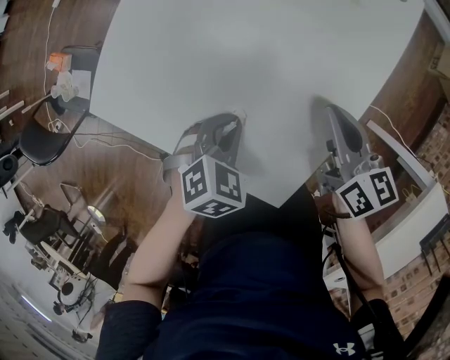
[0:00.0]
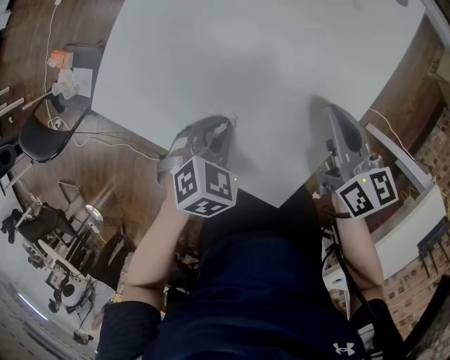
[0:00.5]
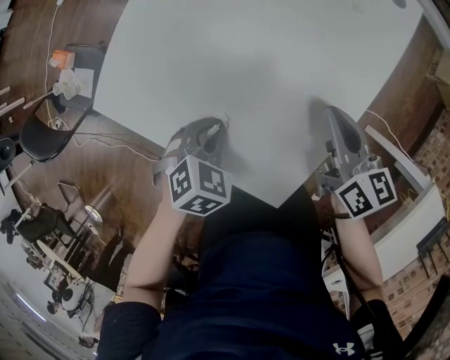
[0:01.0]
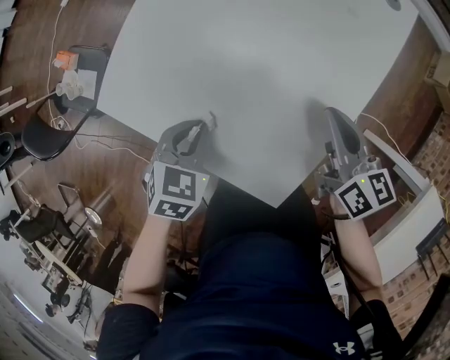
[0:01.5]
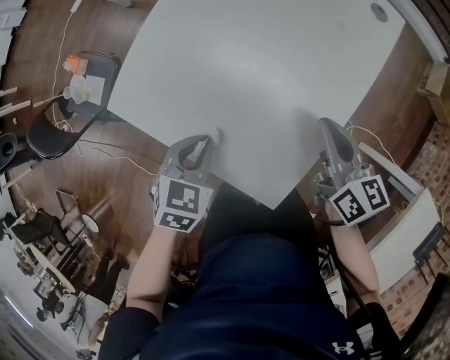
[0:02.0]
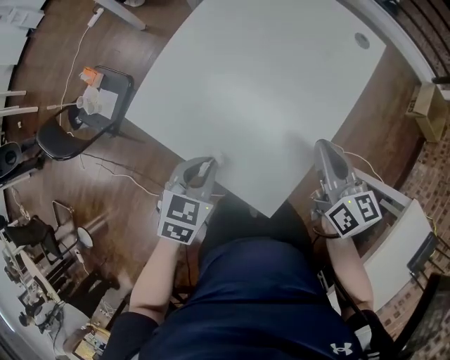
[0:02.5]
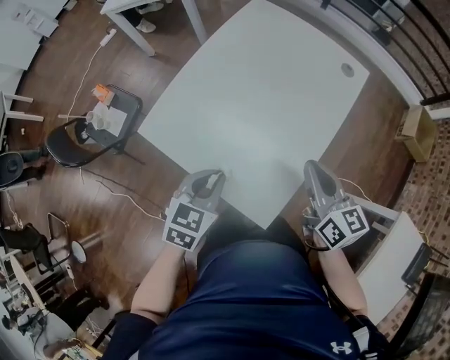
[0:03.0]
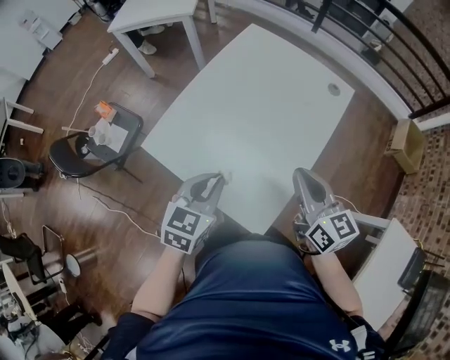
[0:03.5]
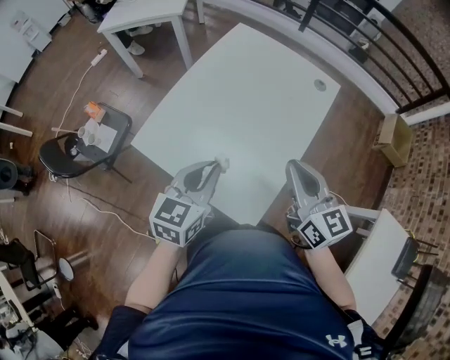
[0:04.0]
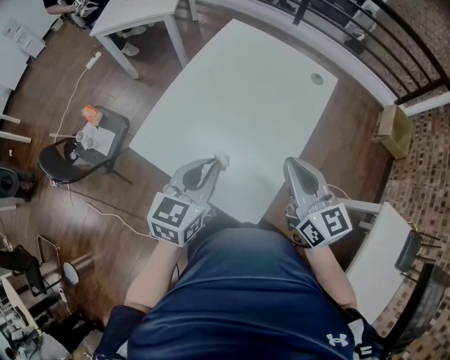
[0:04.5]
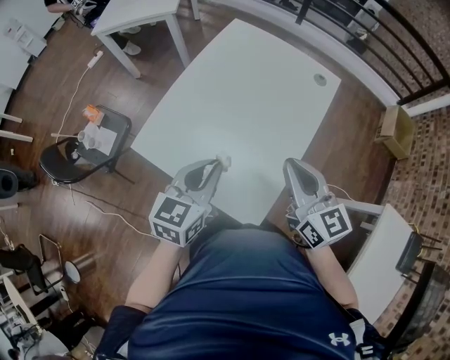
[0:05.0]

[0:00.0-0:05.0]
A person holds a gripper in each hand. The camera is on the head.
0:00.0 to 0:02.5: The right gripper is displaced upward by approximately 10 cm, while the left gripper goes approximately 10 cm upward and to the left, and turns by some 30 degrees.
0:02.5 to 0:05.0: The two grippers go roughly 15 cm upward. The right gripper swivels approximately 20 degrees. Meanwhile the left gripper turns by approximately 30 degrees.

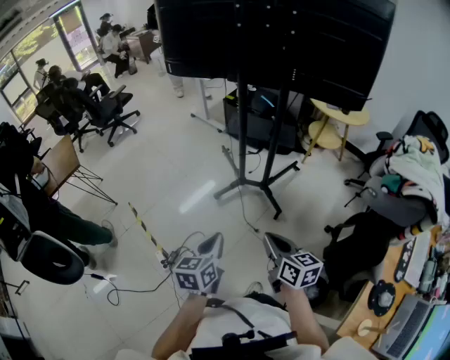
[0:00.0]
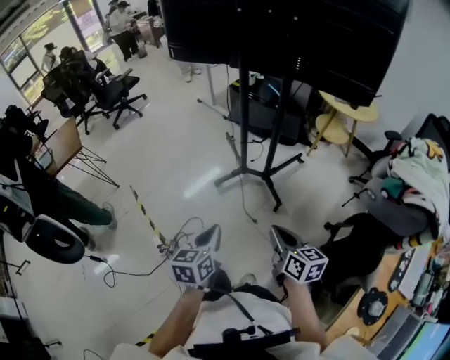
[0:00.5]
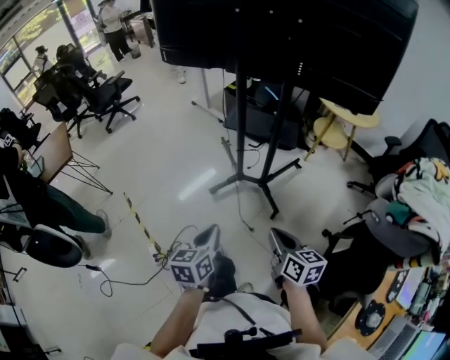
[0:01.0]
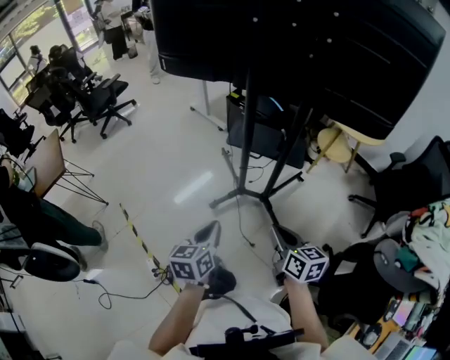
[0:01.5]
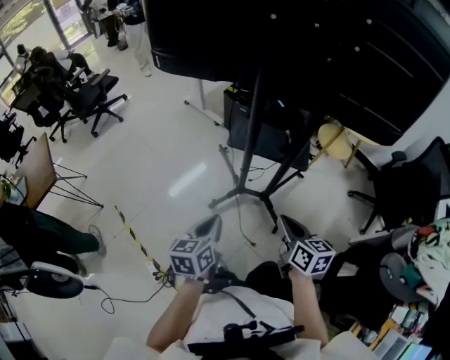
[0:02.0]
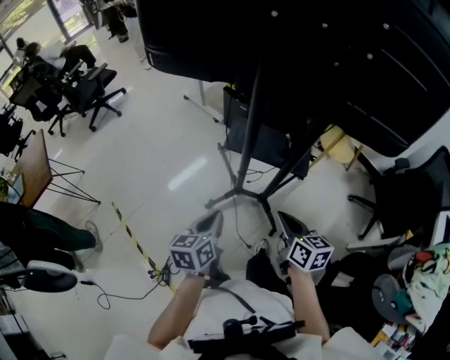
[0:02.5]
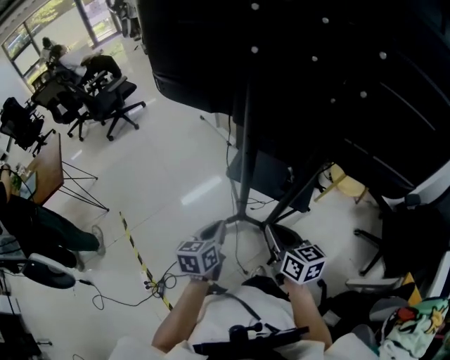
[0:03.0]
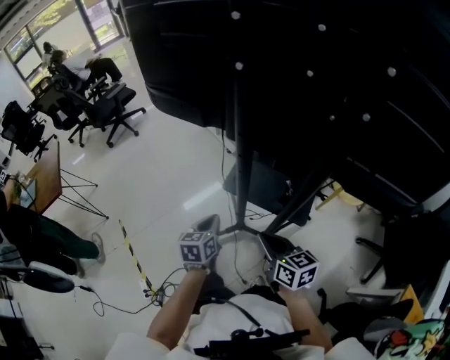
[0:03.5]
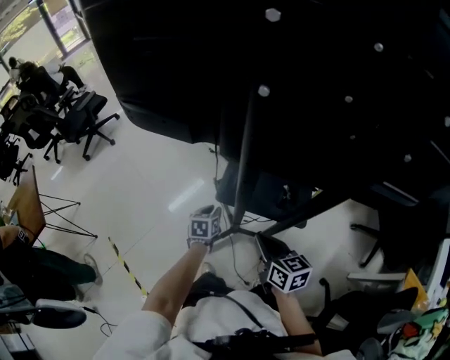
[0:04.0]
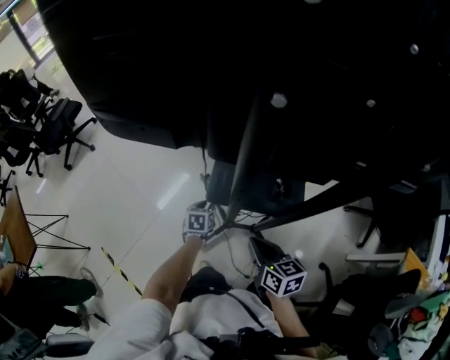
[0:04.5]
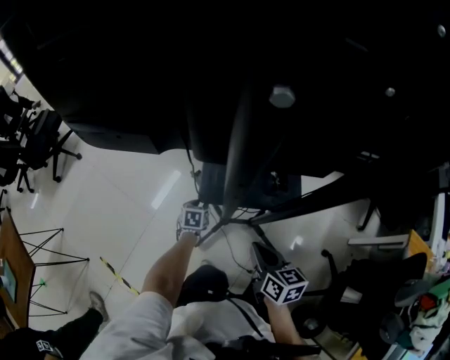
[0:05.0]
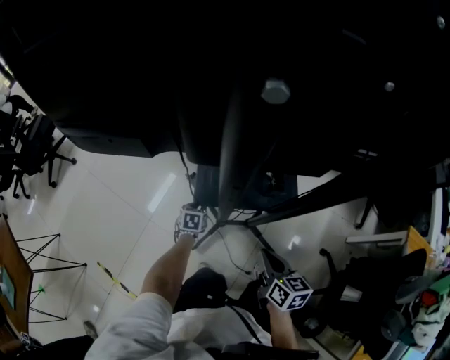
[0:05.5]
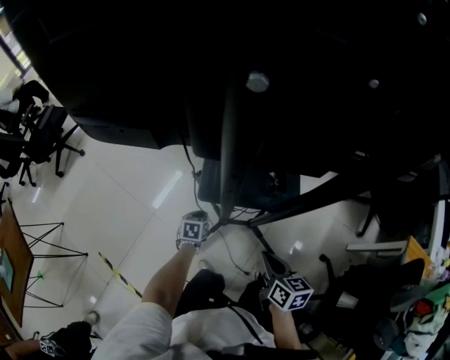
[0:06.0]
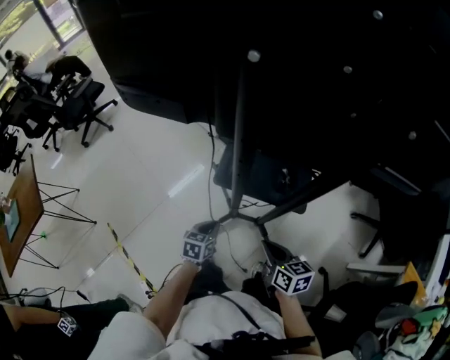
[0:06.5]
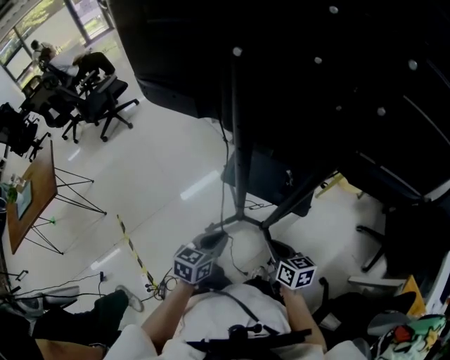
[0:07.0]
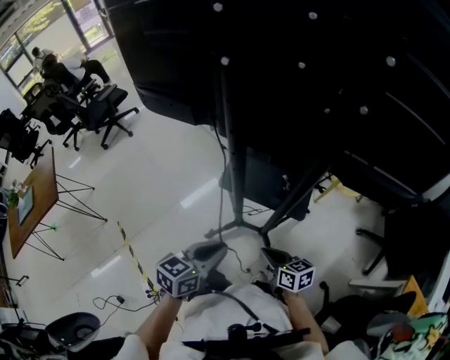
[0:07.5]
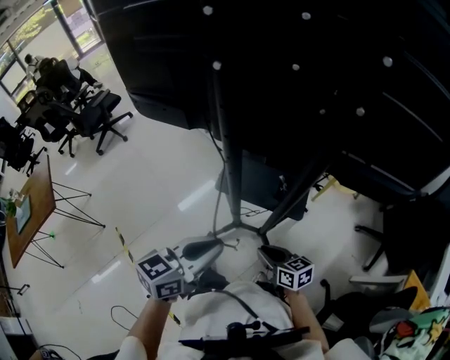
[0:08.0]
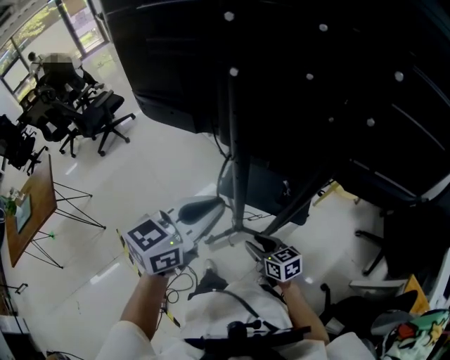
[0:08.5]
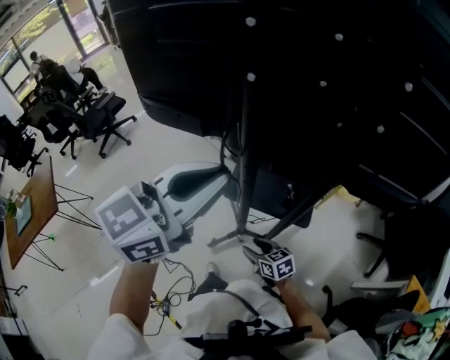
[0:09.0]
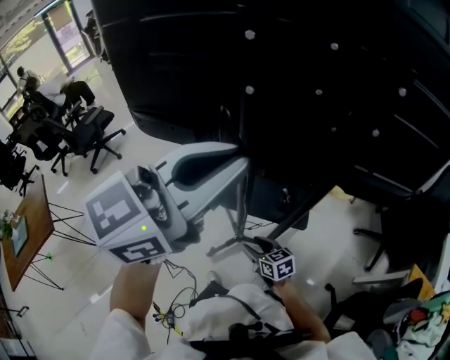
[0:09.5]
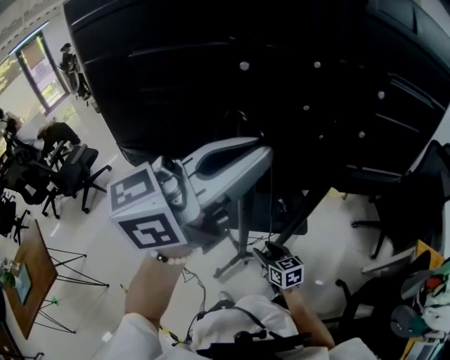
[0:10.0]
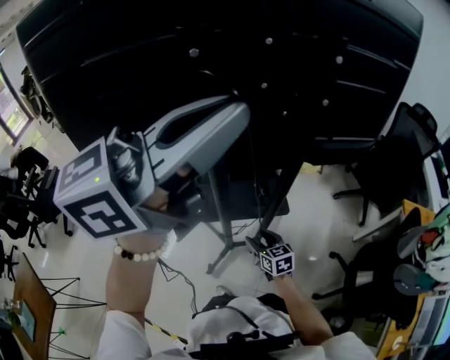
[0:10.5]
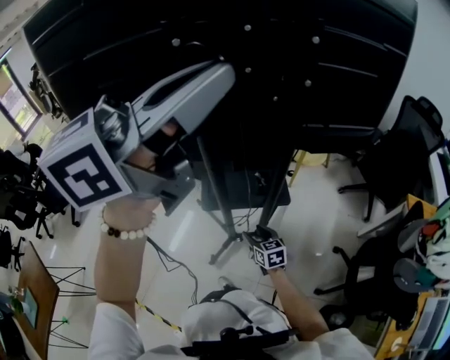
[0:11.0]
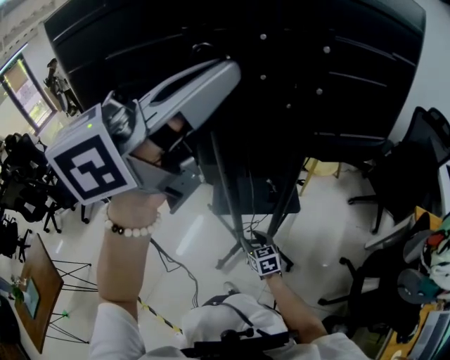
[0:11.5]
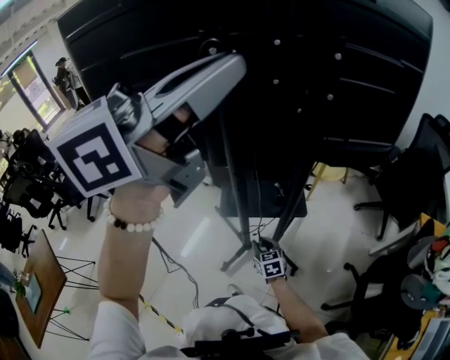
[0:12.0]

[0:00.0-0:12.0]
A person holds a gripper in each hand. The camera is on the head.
0:00.0 to 0:02.0: Both grippers move forward, roughly 35 cm.
0:02.0 to 0:04.0: The left gripper heads forward and downward, covering about 40 cm, turns by roughly 20 degrees, and opens its fingers, while the right gripper is displaced forward by approximately 25 cm.
0:04.0 to 0:06.0: The right gripper travels downward by approximately 5 cm, and changes its angle by about 20 degrees. The left gripper travels downward by roughly 10 cm.
0:06.0 to 0:08.0: The right gripper goes some 5 cm backward, and turns by approximately 30 degrees. Meanwhile the left gripper is displaced upward and backward by about 50 cm, and tilts its fingers approximately 40 degrees upward.
0:08.0 to 0:10.0: The left gripper shifts some 35 cm upward, and angles its fingers upward, by about 30 degrees. Meanwhile the right gripper moves approximately 15 cm, turns by about 20 degrees, and opens.
0:10.0 to 0:12.0: The right gripper moves downward, about 10 cm, and closes, while the left gripper goes roughly 10 cm upward.

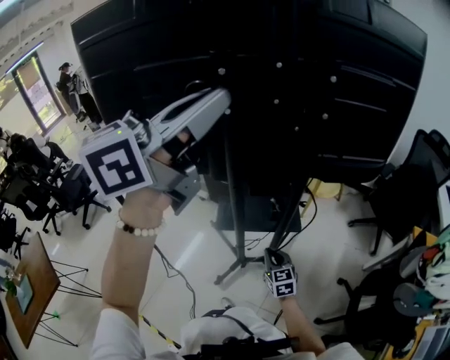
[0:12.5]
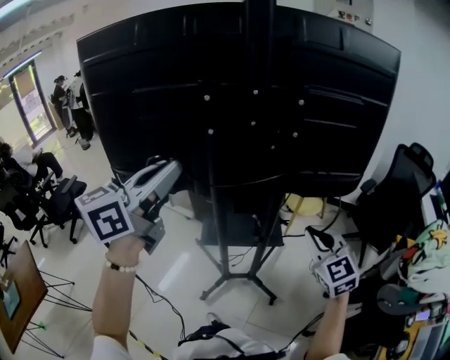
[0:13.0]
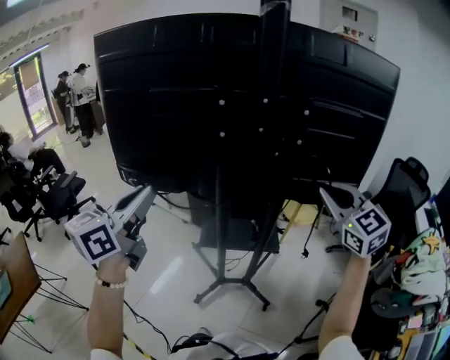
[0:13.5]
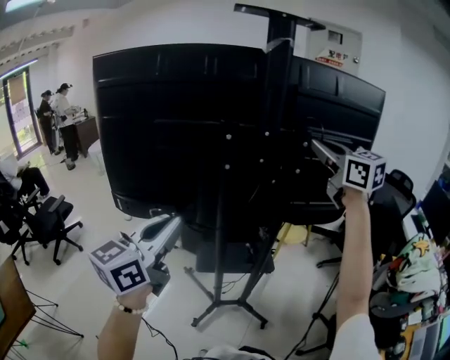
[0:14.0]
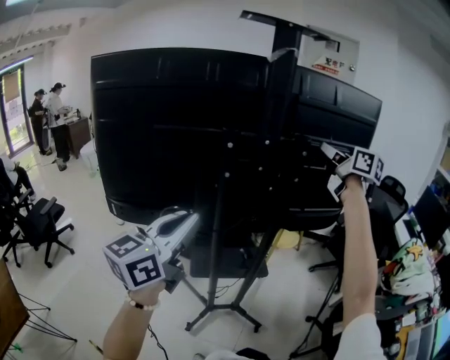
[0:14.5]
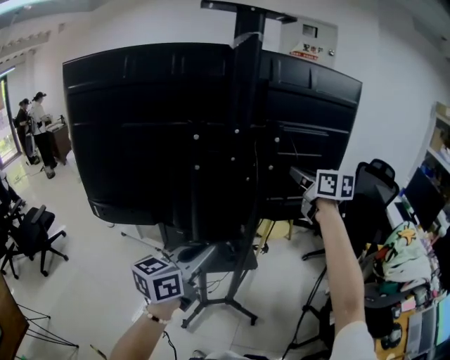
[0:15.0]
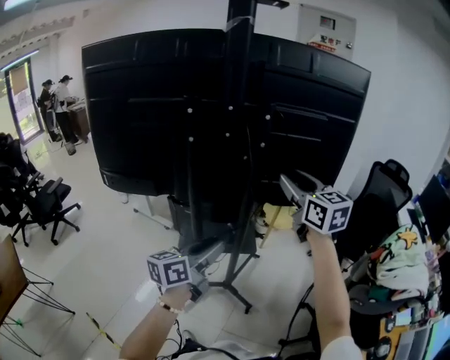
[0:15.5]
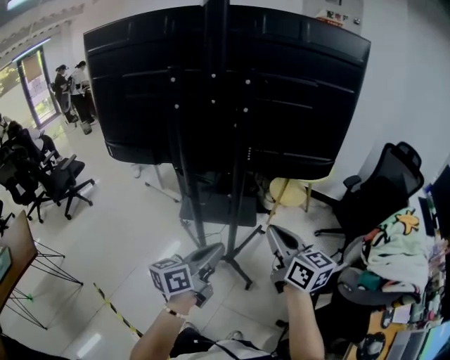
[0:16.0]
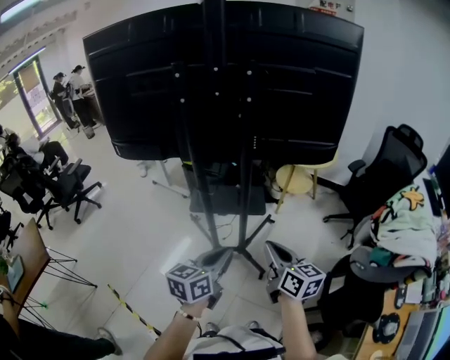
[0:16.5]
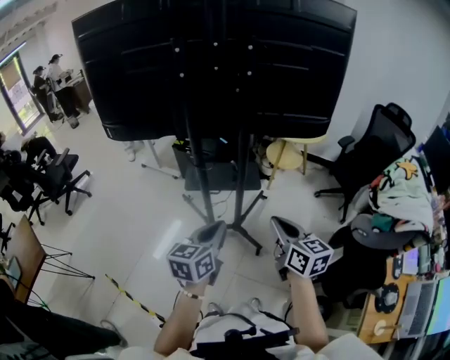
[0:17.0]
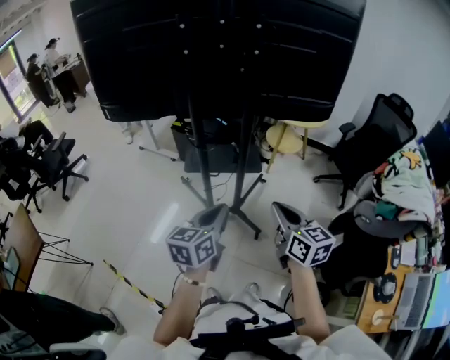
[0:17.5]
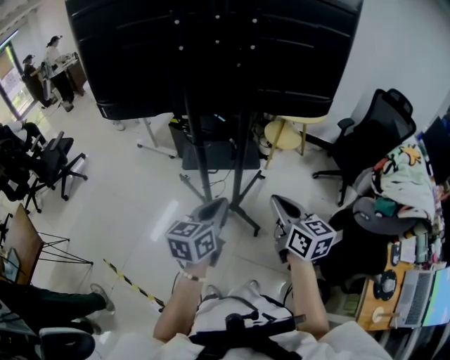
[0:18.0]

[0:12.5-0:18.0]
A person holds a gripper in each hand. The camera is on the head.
0:12.5 to 0:14.5: The left gripper goes roughly 15 cm downward, to the left and backward, while the right gripper shifts some 60 cm upward, and changes its angle by some 40 degrees.
0:14.5 to 0:16.0: The left gripper heads to the right and downward, covering approximately 35 cm, turns by roughly 30 degrees, and opens, then closes again, while the right gripper moves downward and backward, some 40 cm, and opens, then closes once more.
0:16.0 to 0:18.0: The right gripper moves backward, downward and to the left, some 10 cm. Meanwhile the left gripper shifts about 5 cm to the left, and swivels some 20 degrees.

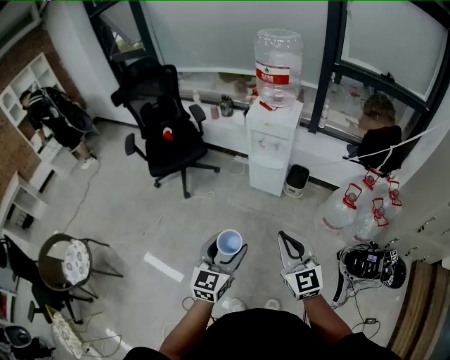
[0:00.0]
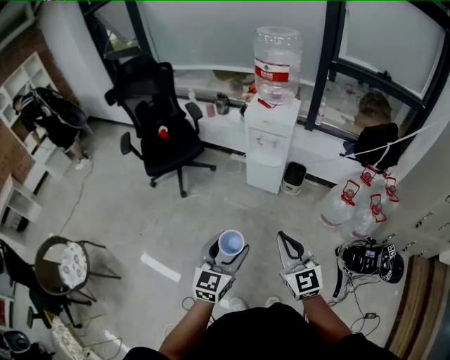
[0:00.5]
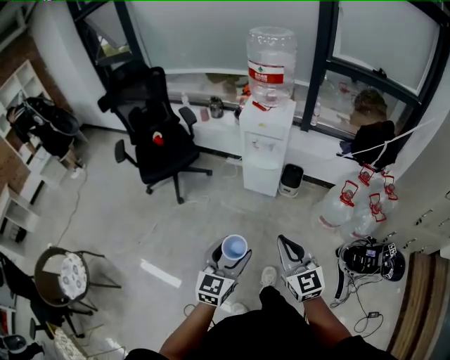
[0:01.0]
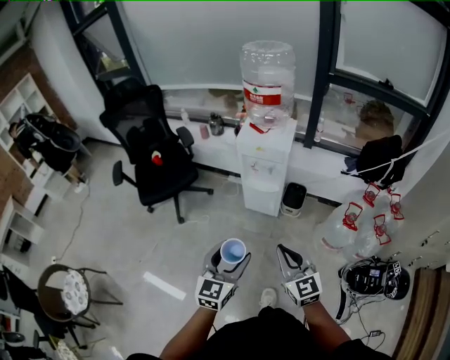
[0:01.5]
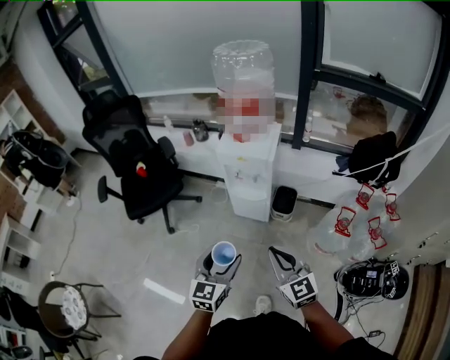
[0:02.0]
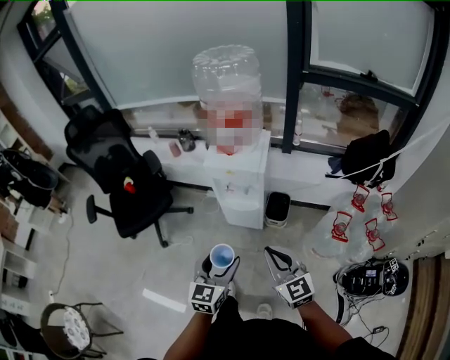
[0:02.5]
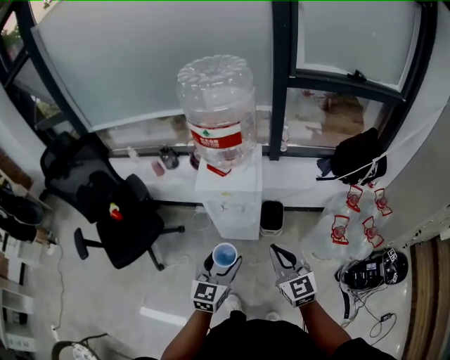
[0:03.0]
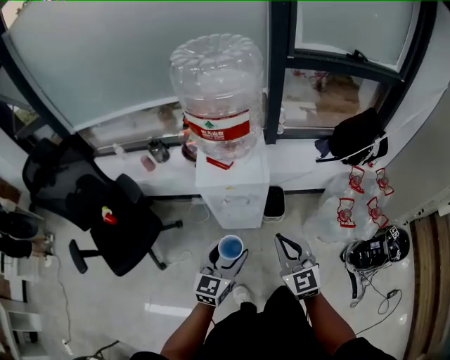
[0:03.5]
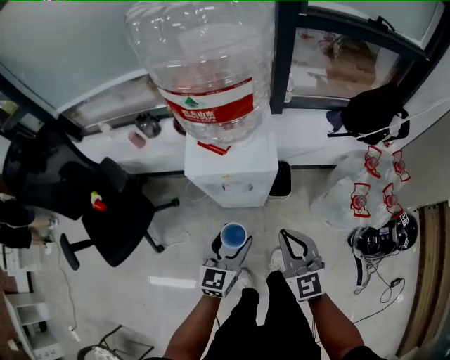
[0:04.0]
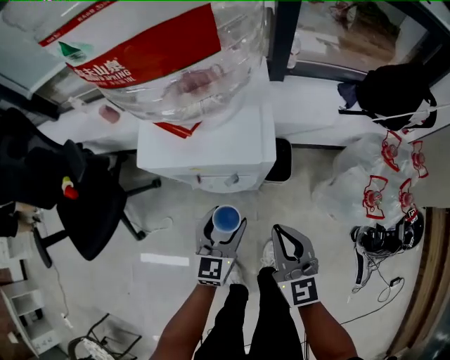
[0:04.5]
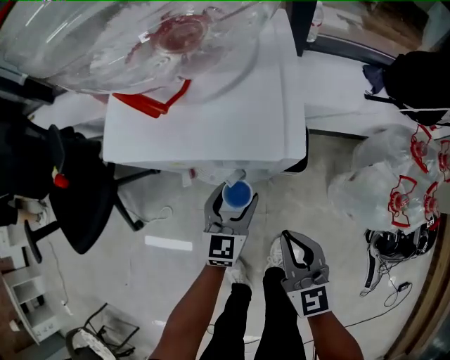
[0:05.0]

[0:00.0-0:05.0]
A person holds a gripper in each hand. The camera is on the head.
0:00.0 to 0:02.5: The two grippers go some 25 cm forward.
0:02.5 to 0:05.0: The left gripper travels forward and downward by some 50 cm. Meanwhile the right gripper travels downward and forward by roughly 35 cm, and turns by roughly 20 degrees.
